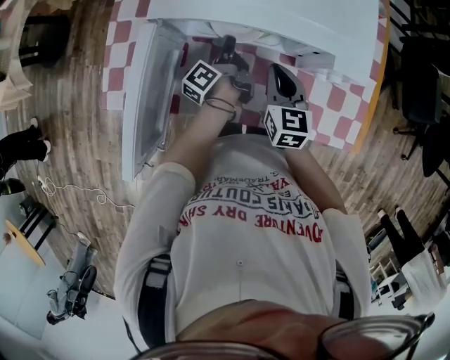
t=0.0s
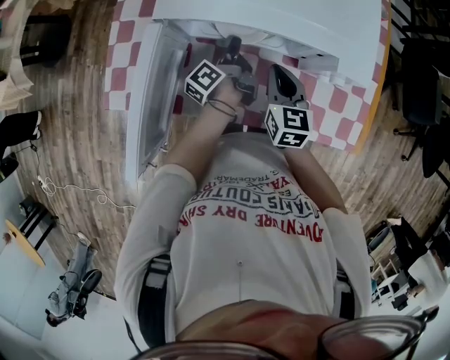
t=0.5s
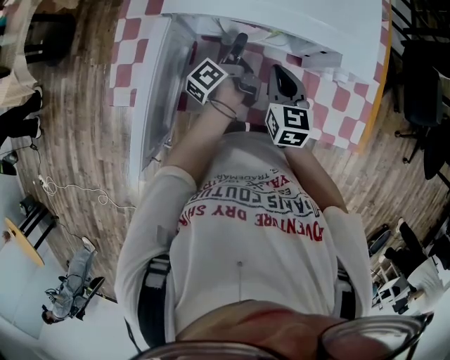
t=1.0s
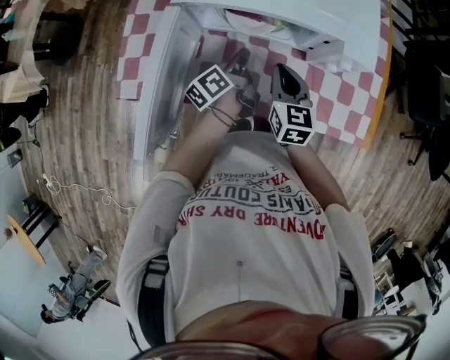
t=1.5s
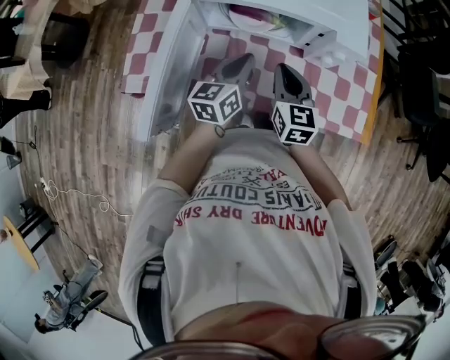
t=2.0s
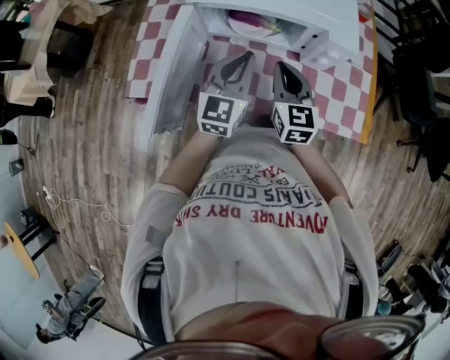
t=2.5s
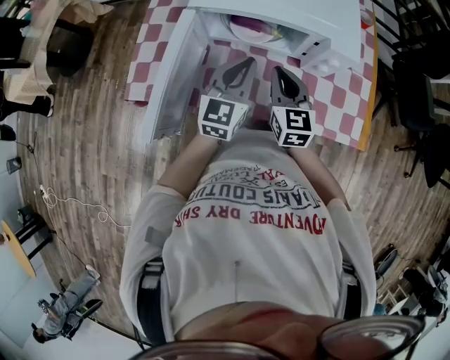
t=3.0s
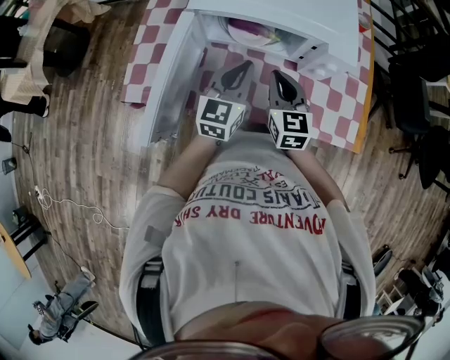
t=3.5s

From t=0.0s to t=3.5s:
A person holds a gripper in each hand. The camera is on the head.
From t=0.0s to t=2.0s: The right gripper shifts by approximately 5 cm.

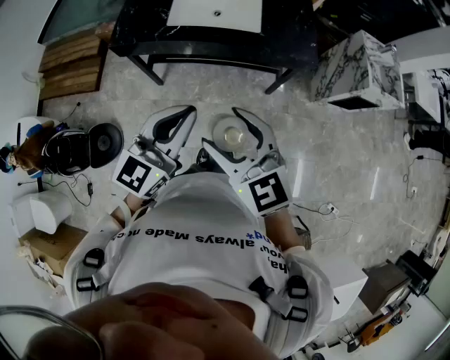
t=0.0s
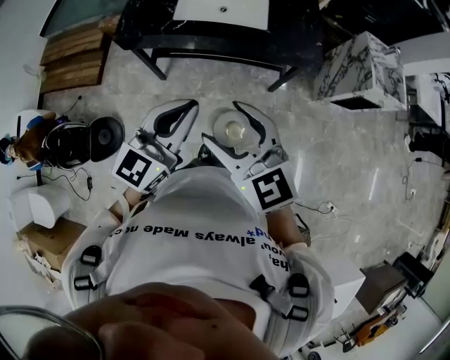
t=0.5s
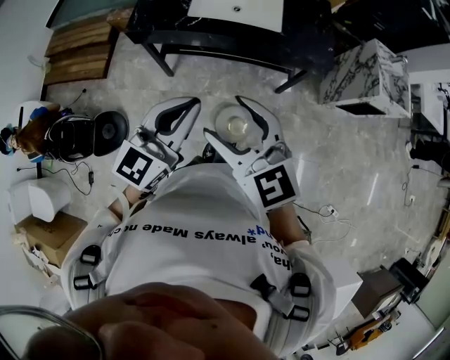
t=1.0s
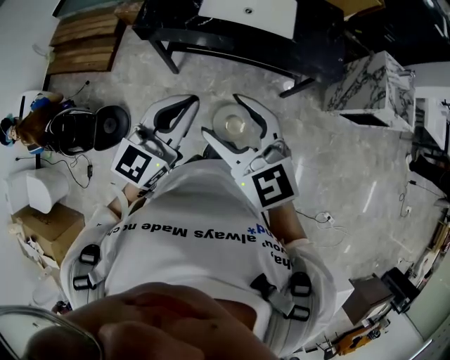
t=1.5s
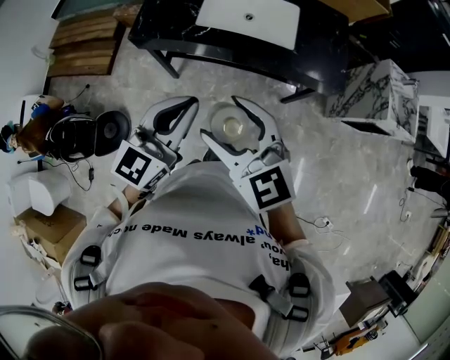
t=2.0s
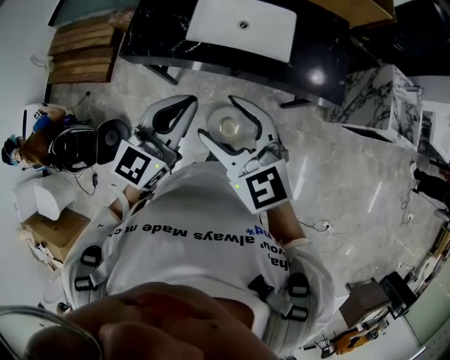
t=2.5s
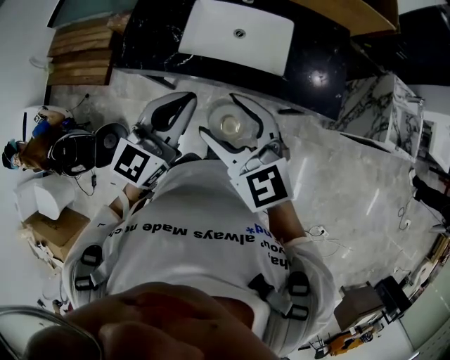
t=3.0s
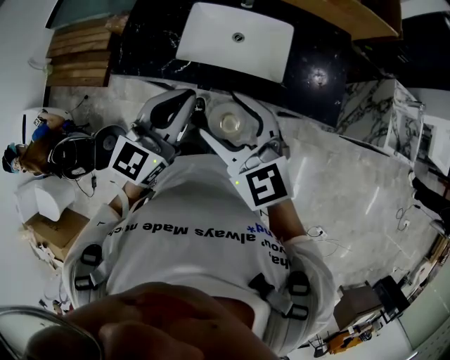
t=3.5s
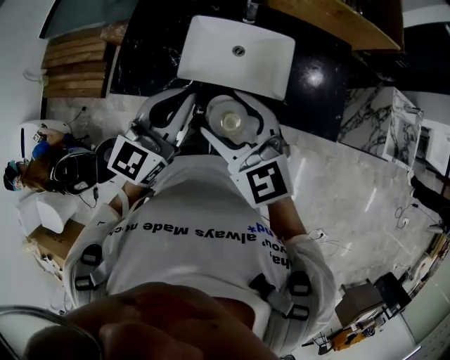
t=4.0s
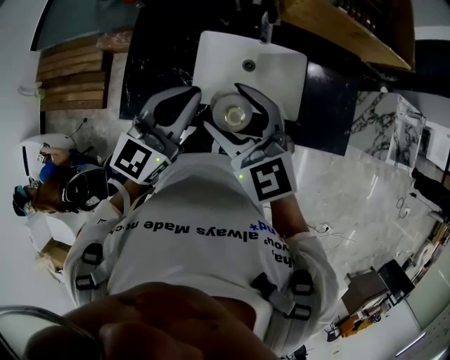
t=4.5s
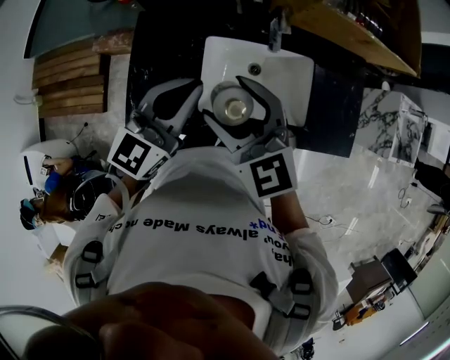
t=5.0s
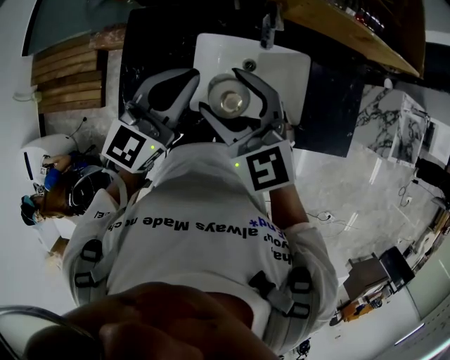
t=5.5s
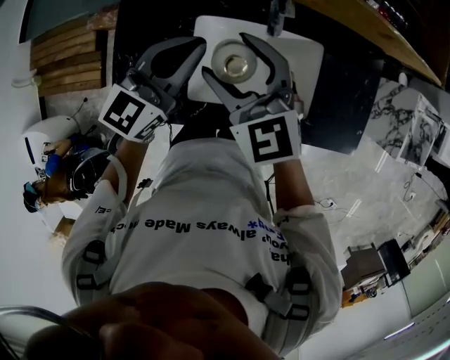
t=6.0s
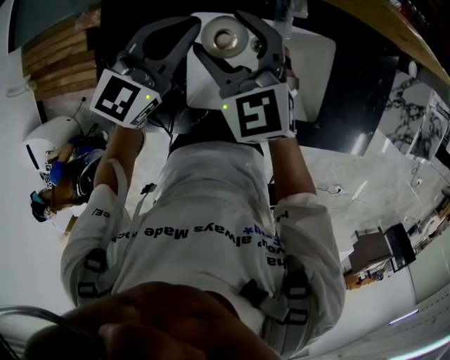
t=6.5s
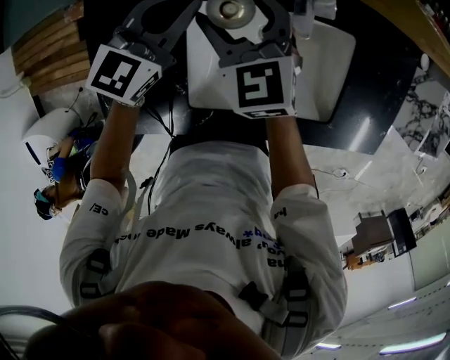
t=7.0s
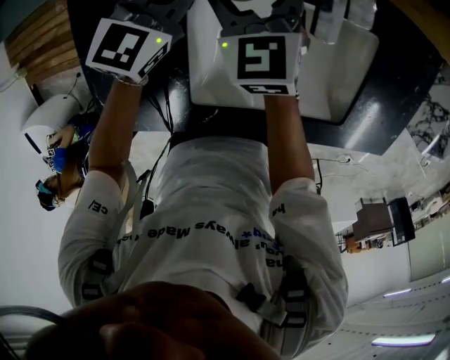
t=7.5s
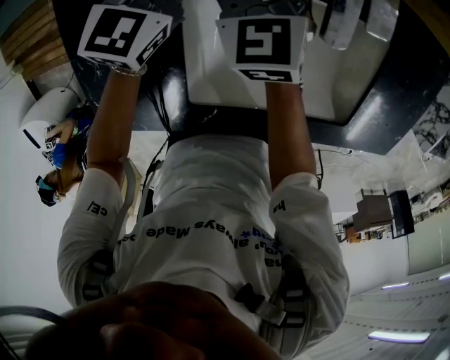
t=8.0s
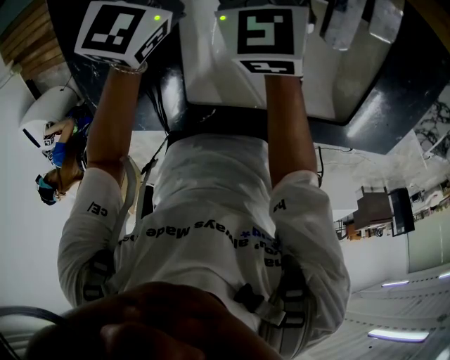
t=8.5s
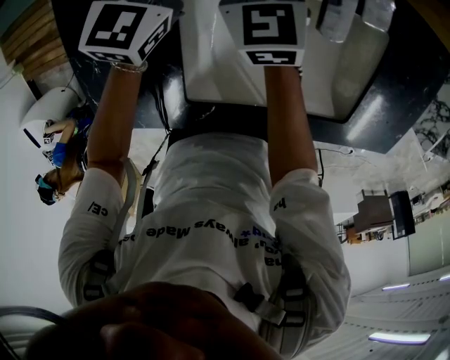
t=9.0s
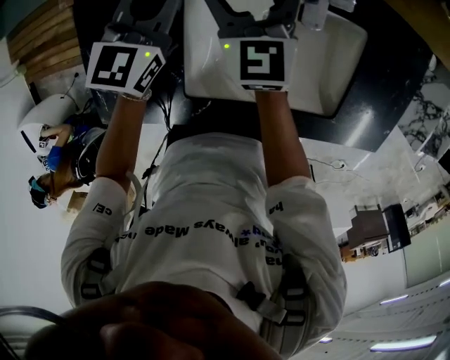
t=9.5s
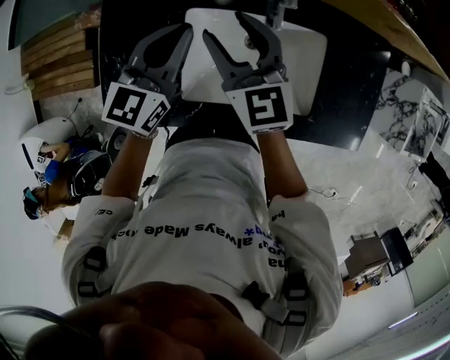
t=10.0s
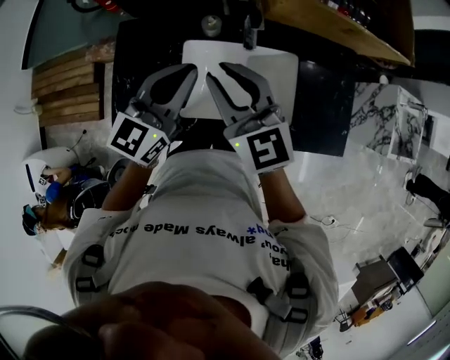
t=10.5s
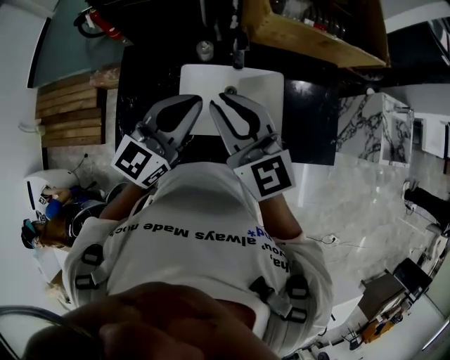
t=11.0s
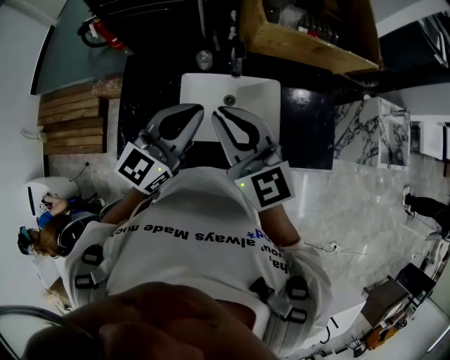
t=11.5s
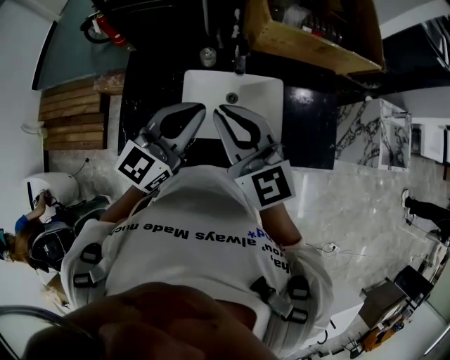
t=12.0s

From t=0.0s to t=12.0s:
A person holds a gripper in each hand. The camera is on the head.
From t=0.0s to t=2.0s: The two grippers go roughly 15 cm forward and to the left.
From t=2.0s to t=4.0s: The grippers both shift forward by approximately 30 cm.
From t=4.0s to t=6.0s: The grippers both shift forward by roughly 30 cm.
From t=6.0s to t=8.0s: The grippers both shift downward and forward by roughly 30 cm.
From t=8.0s to t=10.0s: The grippers both shift upward and backward by approximately 25 cm.
From t=10.0s to t=12.0s: The grippers both shift upward and backward by approximately 25 cm. The right gripper closes up.

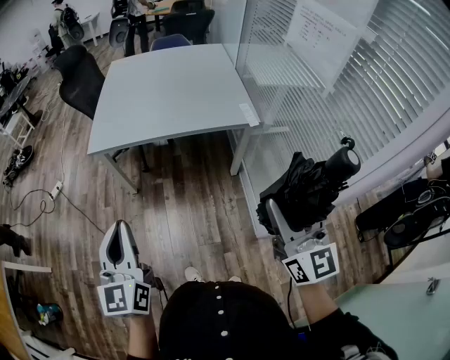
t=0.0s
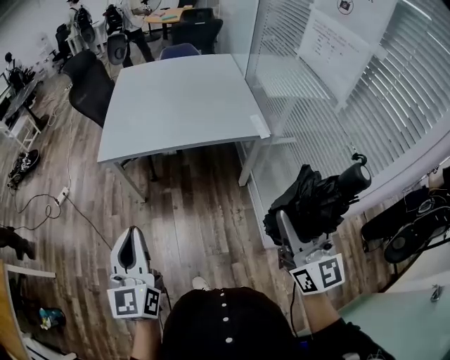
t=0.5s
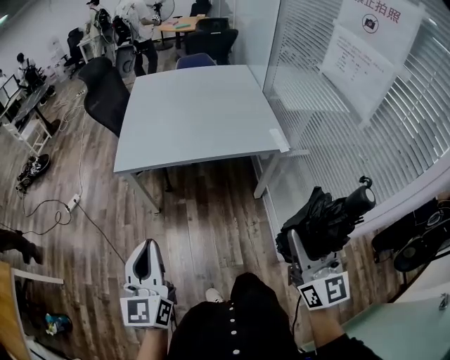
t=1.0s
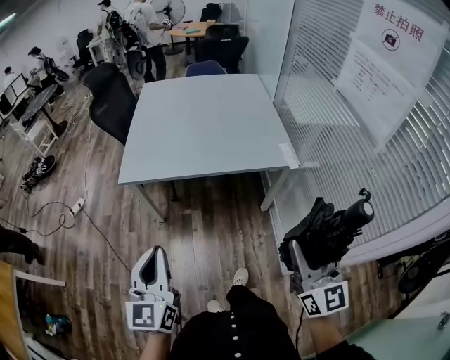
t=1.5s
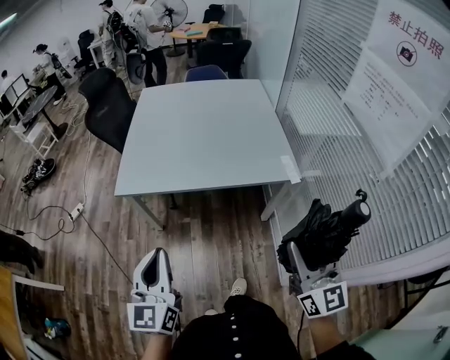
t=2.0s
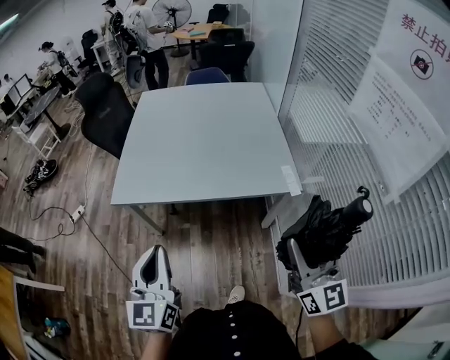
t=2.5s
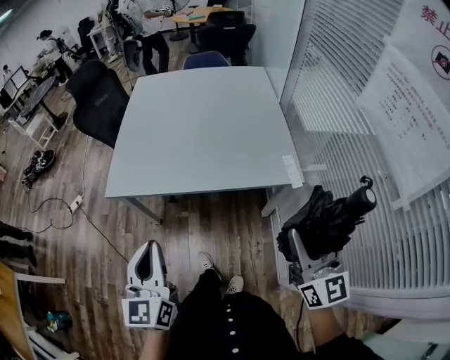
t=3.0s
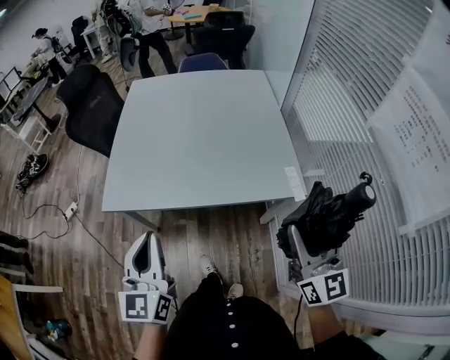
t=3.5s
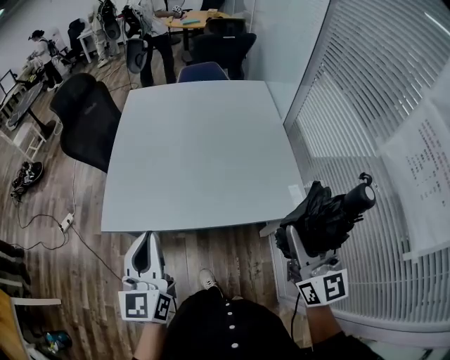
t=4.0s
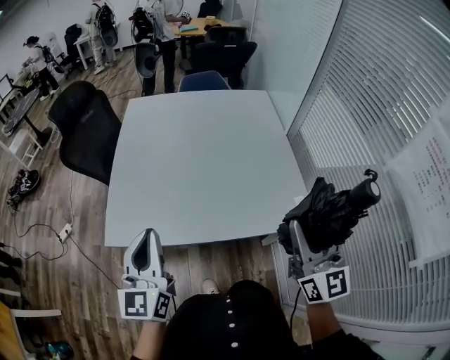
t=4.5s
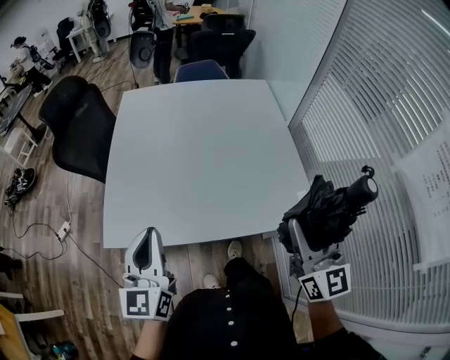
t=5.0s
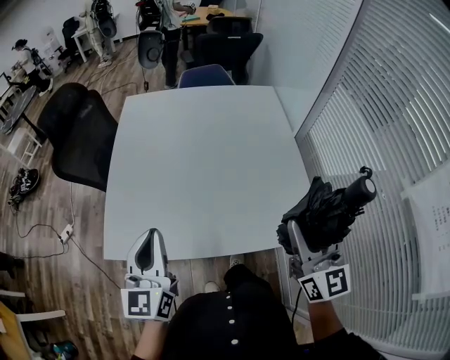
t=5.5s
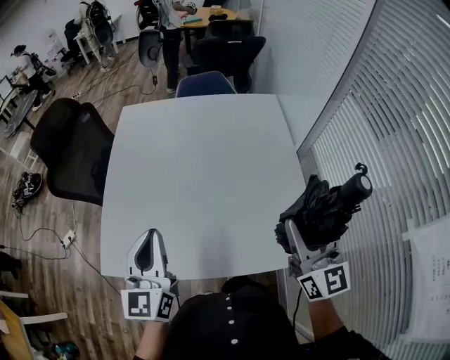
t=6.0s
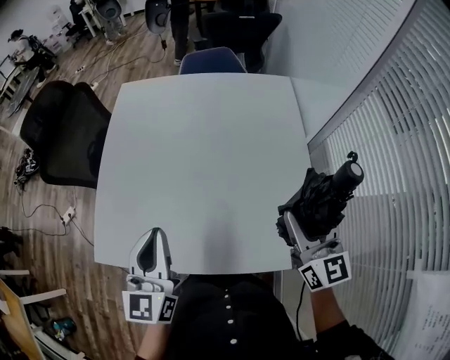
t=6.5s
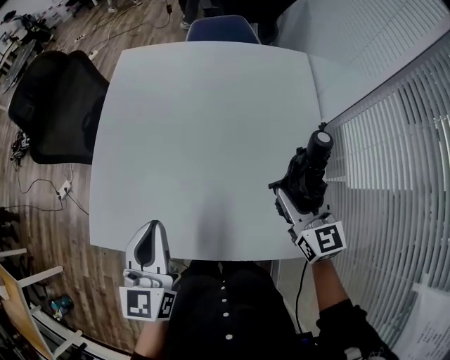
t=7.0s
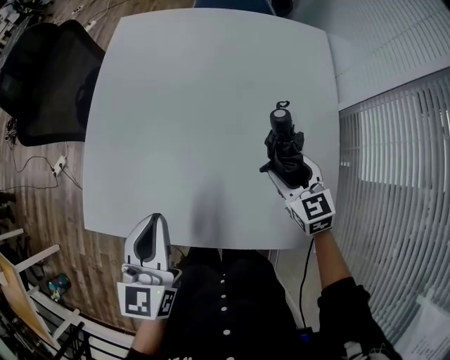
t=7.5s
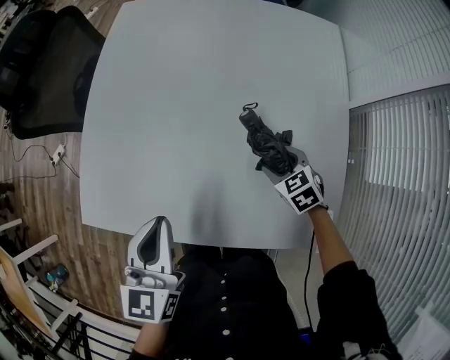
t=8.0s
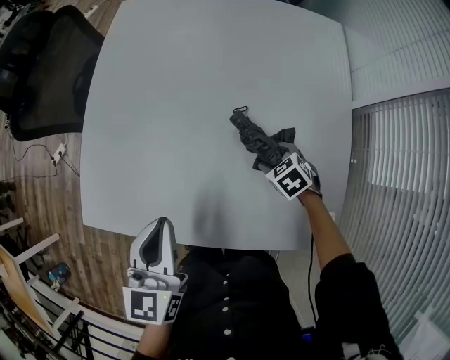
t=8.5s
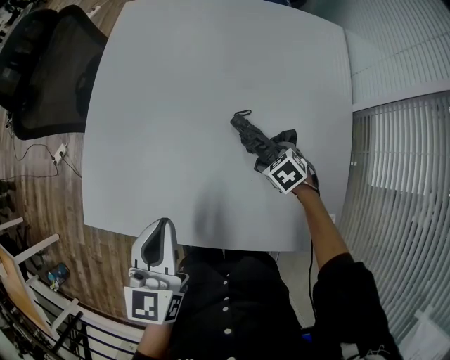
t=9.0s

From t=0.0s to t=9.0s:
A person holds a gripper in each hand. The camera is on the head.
From t=0.0s to t=2.0s: Both grippers move forward, about 15 cm.
From t=2.0s to t=4.5s: The two grippers go some 30 cm forward.
From t=4.5s to t=7.0s: The right gripper is displaced forward and downward by some 35 cm, and swivels about 30 degrees, while the left gripper heads forward and to the right, covering roughly 20 cm.
From t=7.0s to t=9.0s: The left gripper shifts roughly 5 cm downward. Meanwhile the right gripper heads downward, covering some 30 cm, and tilts its fingers approximately 60 degrees downward.

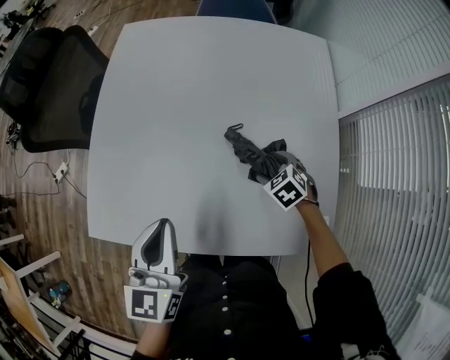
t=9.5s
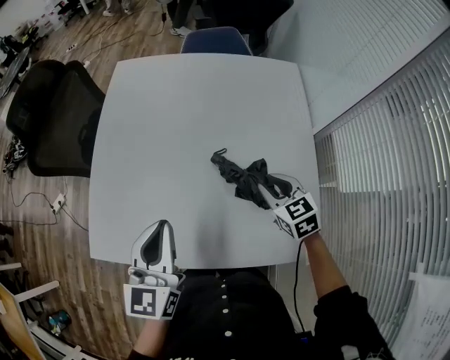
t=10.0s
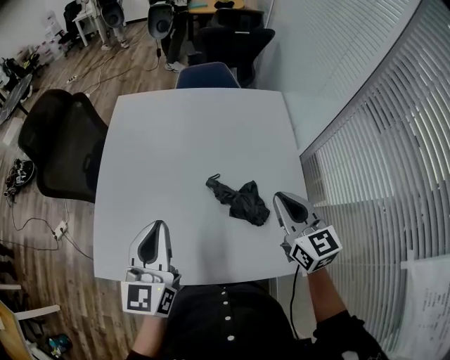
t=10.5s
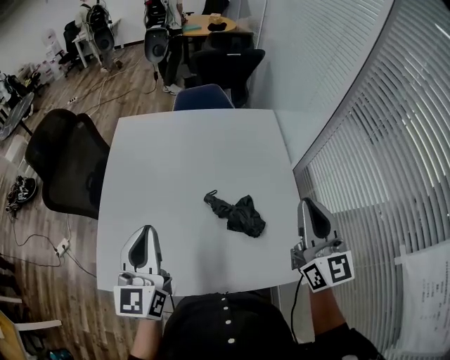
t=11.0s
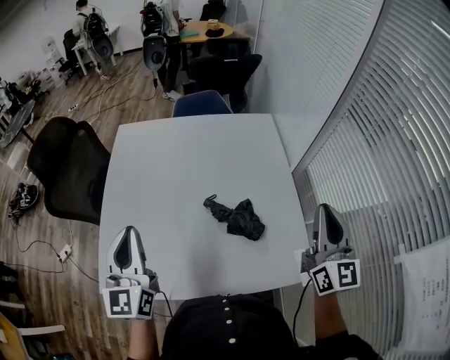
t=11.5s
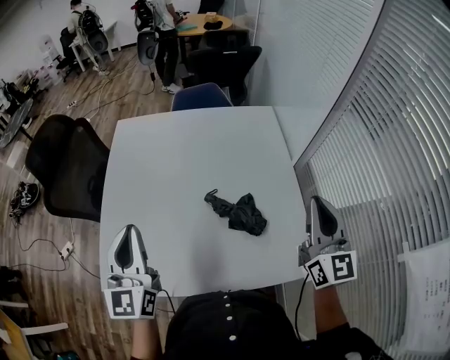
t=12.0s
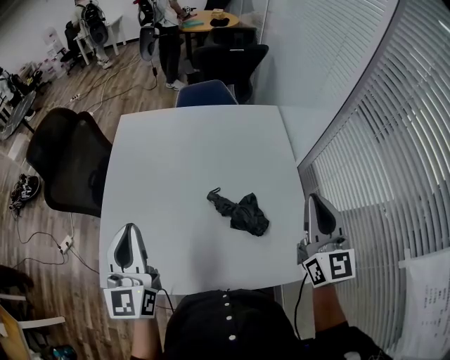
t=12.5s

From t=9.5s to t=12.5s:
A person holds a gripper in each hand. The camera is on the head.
From t=9.5s to t=11.0s: The left gripper goes approximately 10 cm upward. Meanwhile the right gripper shifts roughly 40 cm upward, angles its fingers upward, by some 70 degrees, and closes up.
From t=11.0s to t=12.5s: The grippers make only small movements.
